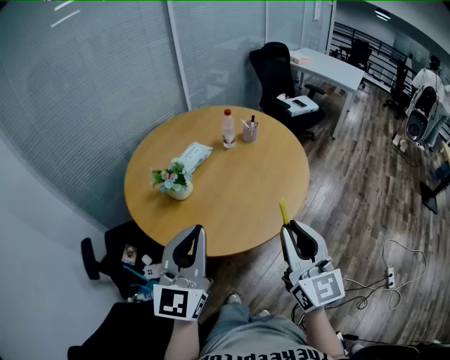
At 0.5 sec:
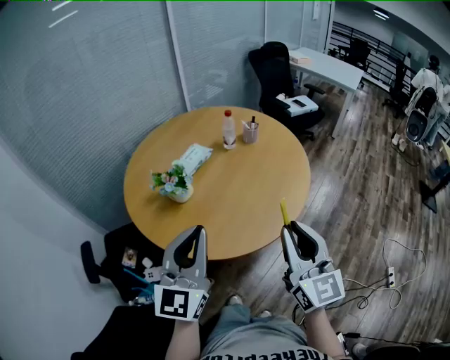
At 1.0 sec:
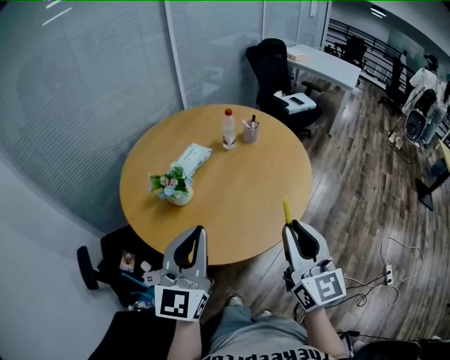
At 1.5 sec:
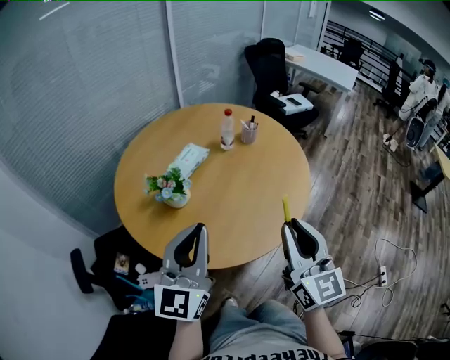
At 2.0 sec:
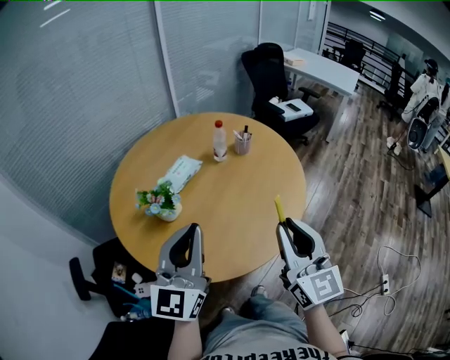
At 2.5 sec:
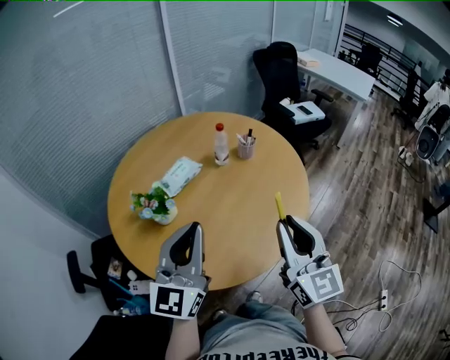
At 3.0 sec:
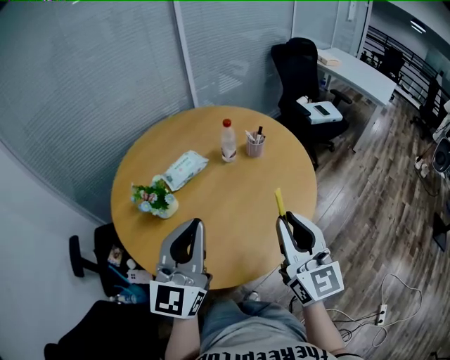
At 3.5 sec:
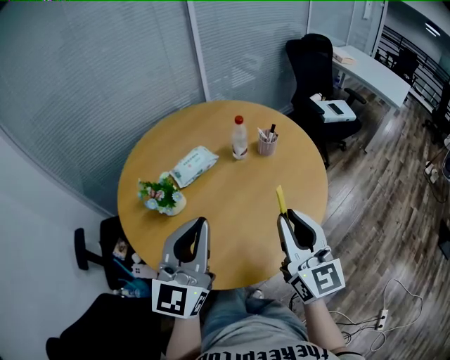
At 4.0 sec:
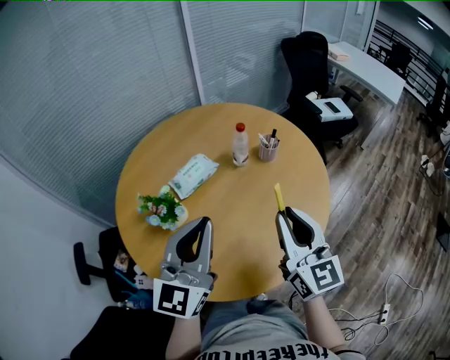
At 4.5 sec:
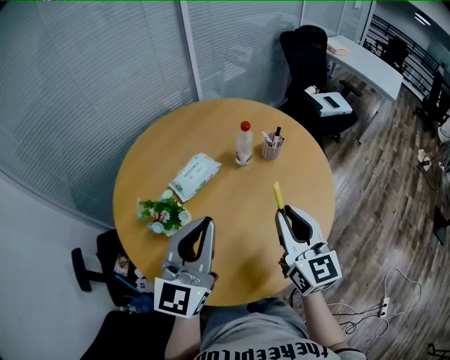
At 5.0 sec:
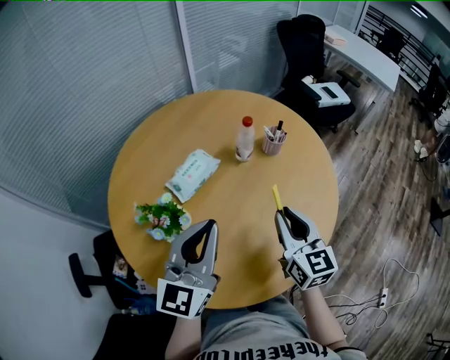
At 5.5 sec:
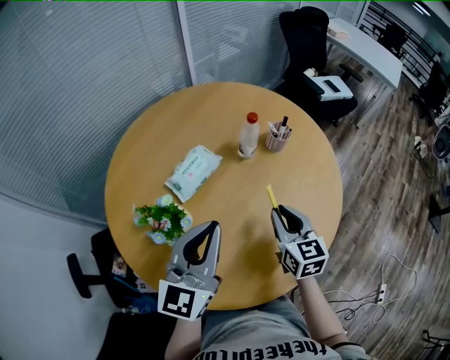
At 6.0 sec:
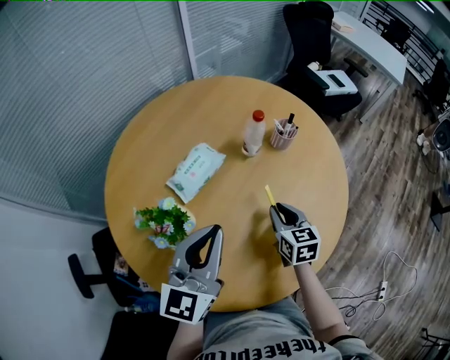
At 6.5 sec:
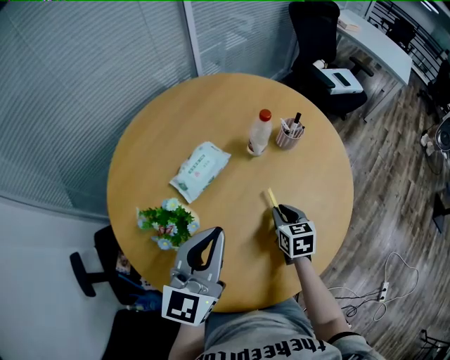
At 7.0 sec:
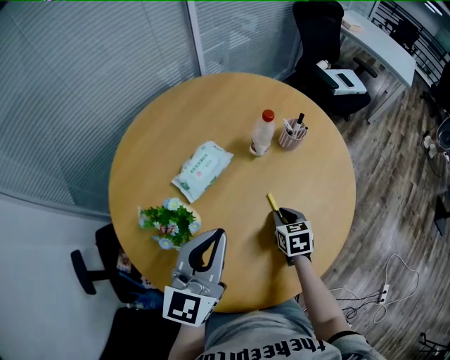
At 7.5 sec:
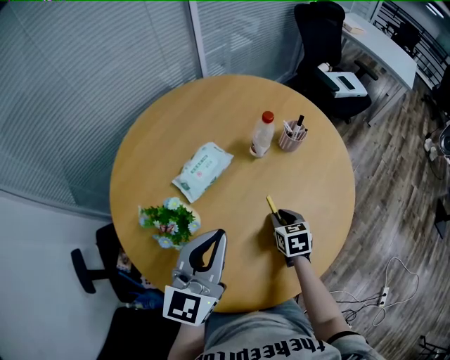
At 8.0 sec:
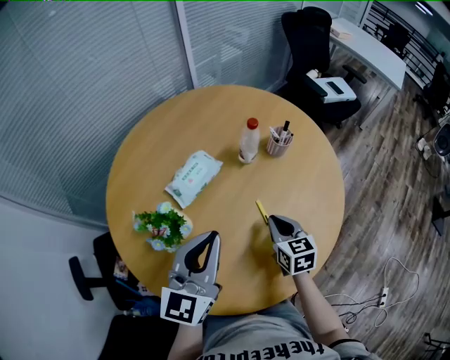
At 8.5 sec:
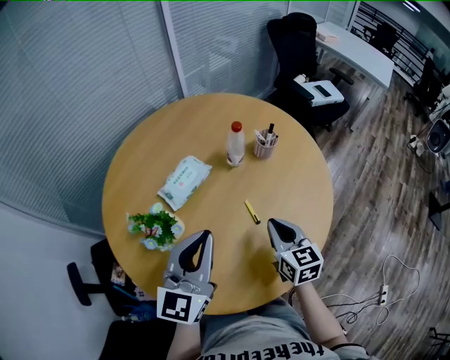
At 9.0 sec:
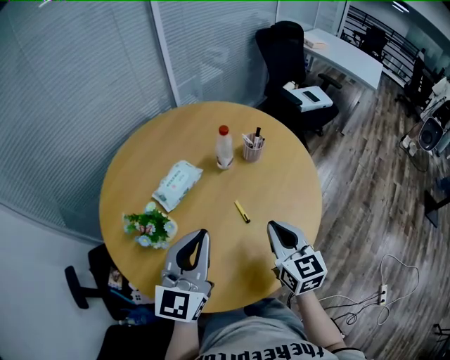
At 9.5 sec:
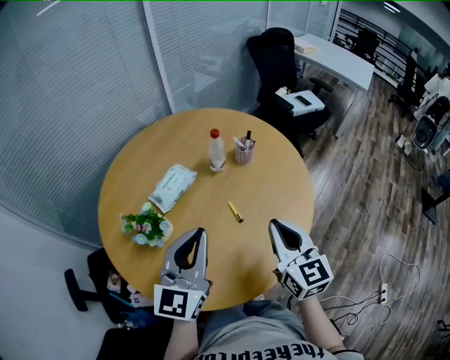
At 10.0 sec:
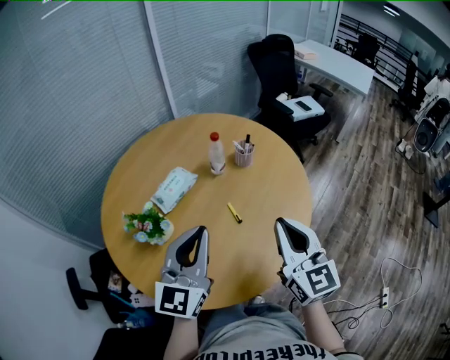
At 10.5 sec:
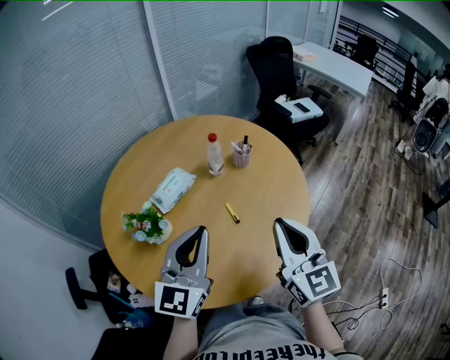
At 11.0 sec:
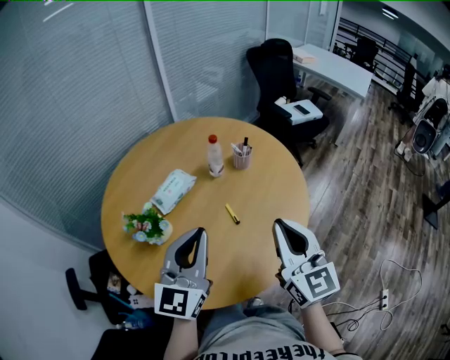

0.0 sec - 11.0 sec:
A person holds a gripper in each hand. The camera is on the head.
0.0 sec - 2.0 sec: The two grippers go about 10 cm forward.
2.0 sec - 3.5 sec: The right gripper goes about 10 cm forward. The left gripper heads forward and to the right, covering about 10 cm.
3.5 sec - 5.5 sec: The right gripper moves downward, forward and to the left, roughly 20 cm, and turns by about 30 degrees; the left gripper shifts approximately 15 cm forward, downward and to the left.
5.5 sec - 7.5 sec: The right gripper goes roughly 15 cm downward, and changes its angle by approximately 30 degrees.
7.5 sec - 9.0 sec: The right gripper travels upward and backward by approximately 20 cm, angles its fingers upward, by approximately 30 degrees, and closes its fingers; the left gripper ends up about 5 cm from where it was.
9.0 sec - 11.0 sec: The left gripper changes place by roughly 5 cm. The right gripper travels upward and backward by roughly 15 cm.

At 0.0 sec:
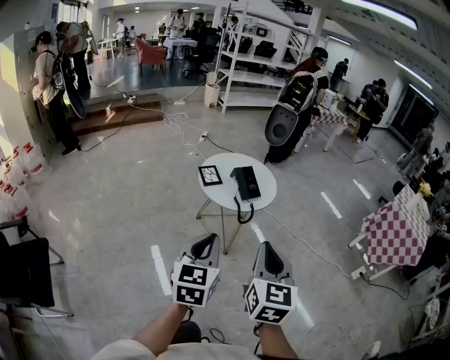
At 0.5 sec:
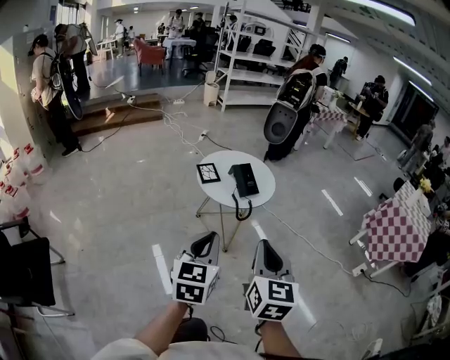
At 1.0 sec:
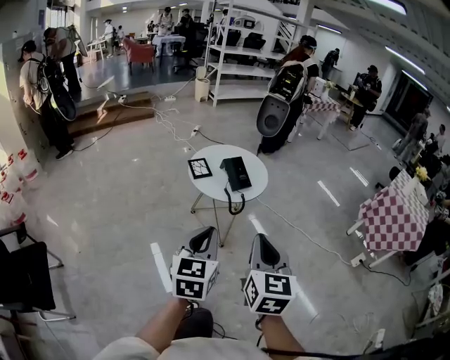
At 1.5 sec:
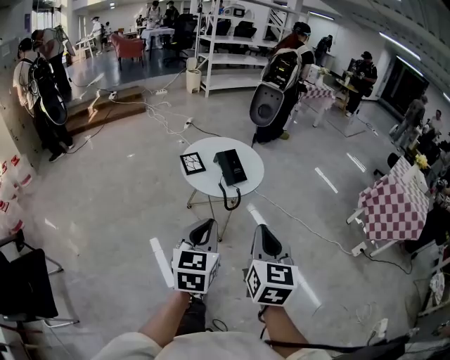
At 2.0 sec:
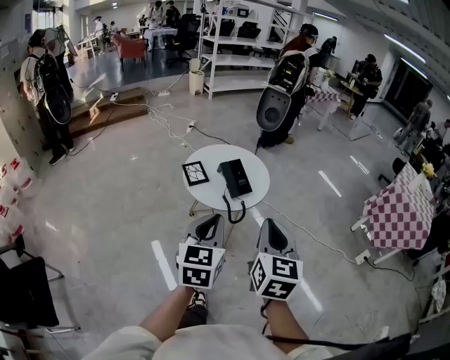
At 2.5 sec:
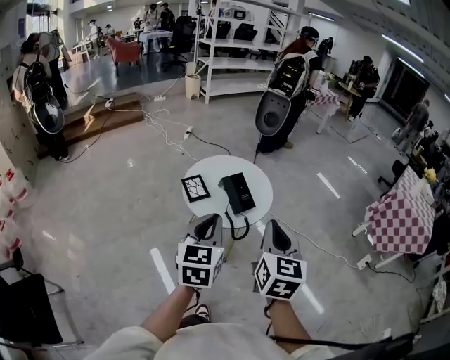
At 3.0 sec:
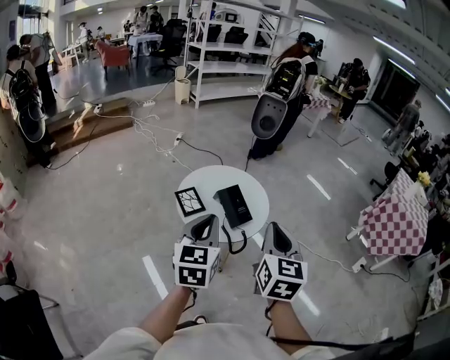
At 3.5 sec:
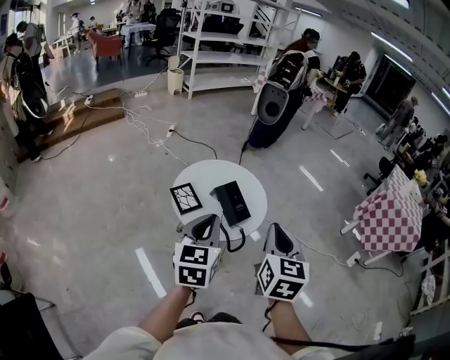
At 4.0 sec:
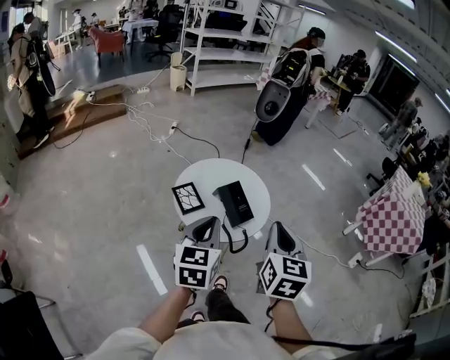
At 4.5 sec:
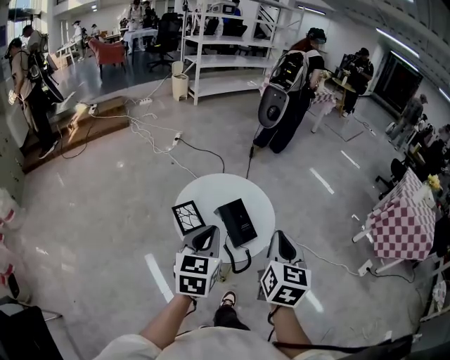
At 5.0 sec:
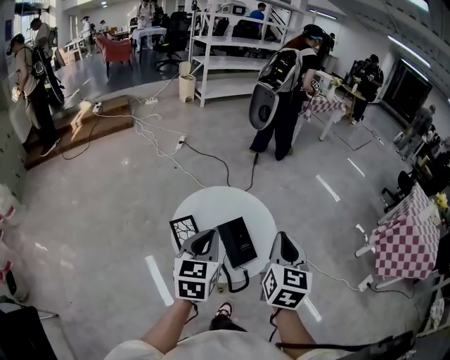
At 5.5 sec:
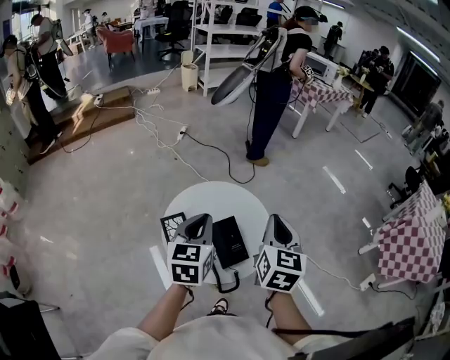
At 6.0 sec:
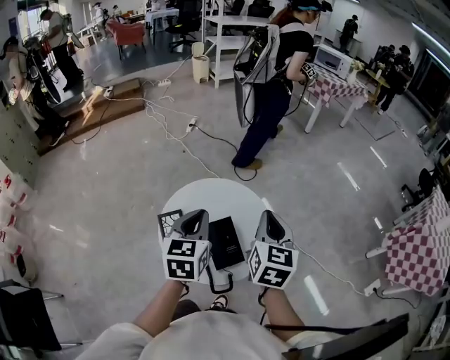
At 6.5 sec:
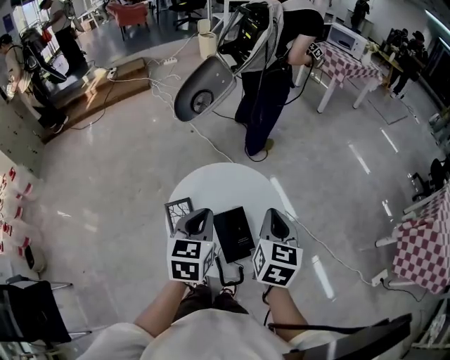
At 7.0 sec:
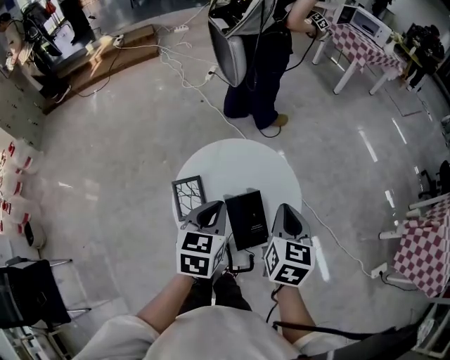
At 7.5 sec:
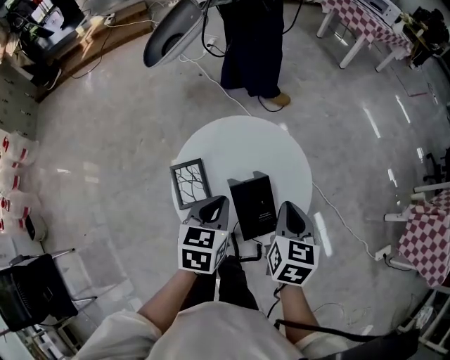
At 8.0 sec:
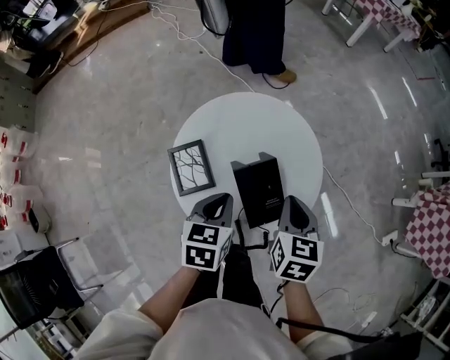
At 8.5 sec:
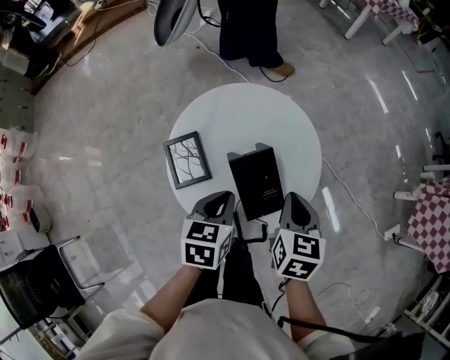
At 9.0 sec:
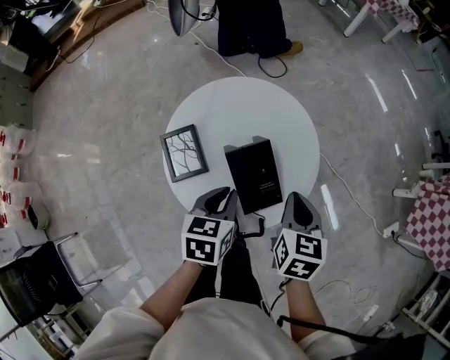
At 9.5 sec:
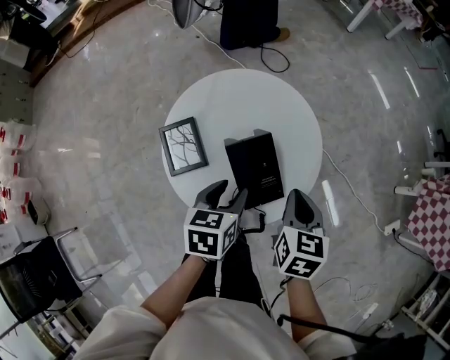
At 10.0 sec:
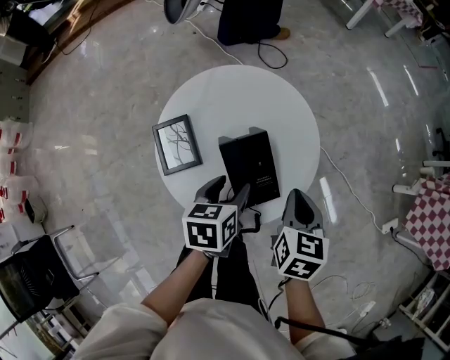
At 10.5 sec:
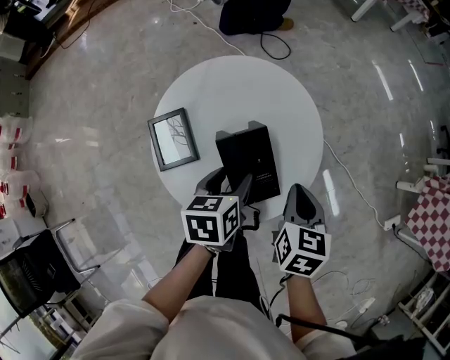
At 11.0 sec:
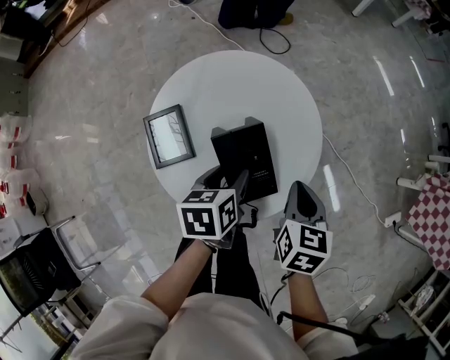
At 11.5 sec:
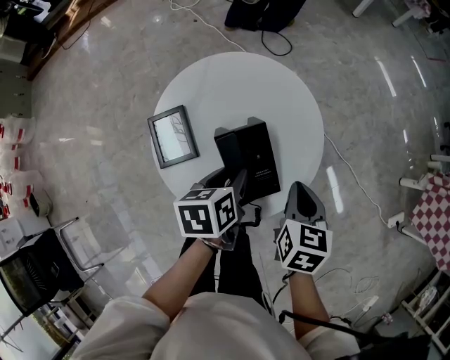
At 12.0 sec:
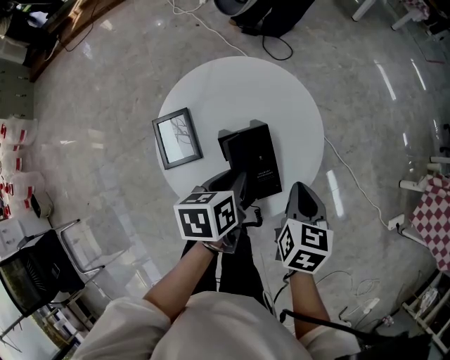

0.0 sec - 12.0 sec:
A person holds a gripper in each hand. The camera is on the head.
0.0 sec - 2.0 sec: The two grippers go roughly 10 cm forward.
2.0 sec - 4.0 sec: The left gripper goes approximately 15 cm forward and to the left, while the right gripper is displaced forward by roughly 15 cm.
4.0 sec - 6.0 sec: Both grippers travel together forward, some 25 cm.
6.0 sec - 8.0 sec: The grippers both shift downward by about 20 cm. The right gripper changes its angle by roughly 20 degrees, while the left gripper turns by approximately 30 degrees.
8.0 sec - 10.0 sec: Both grippers move to the right, approximately 5 cm. The left gripper opens up.
10.0 sec - 12.0 sec: The left gripper closes its fingers.

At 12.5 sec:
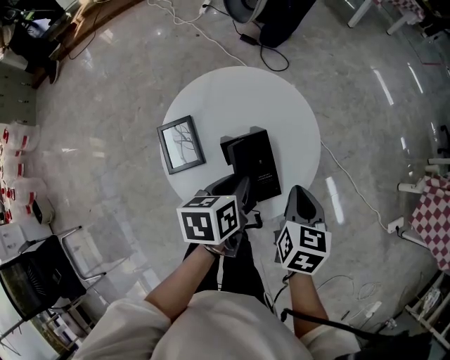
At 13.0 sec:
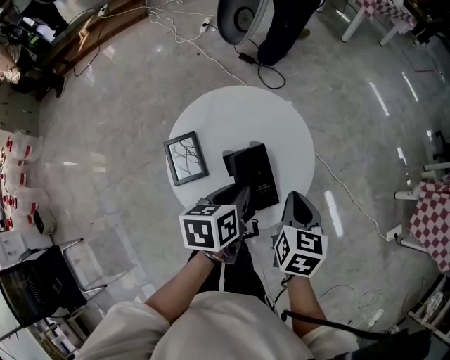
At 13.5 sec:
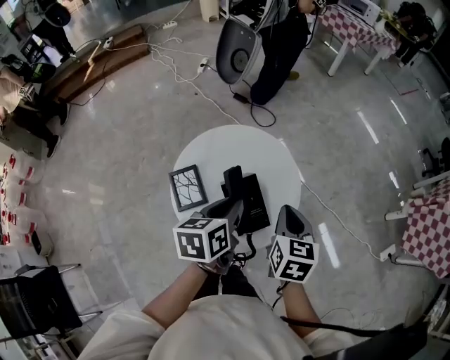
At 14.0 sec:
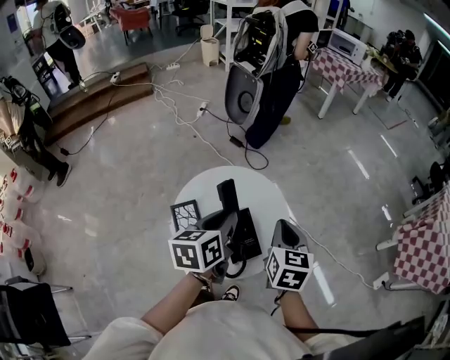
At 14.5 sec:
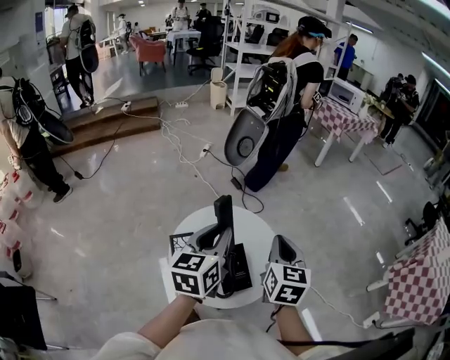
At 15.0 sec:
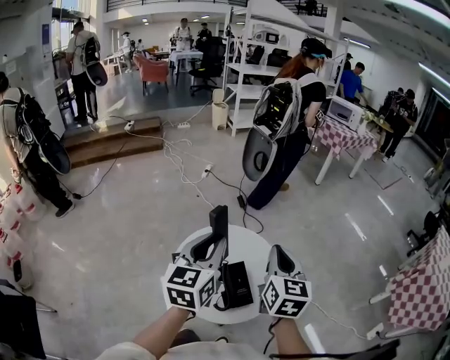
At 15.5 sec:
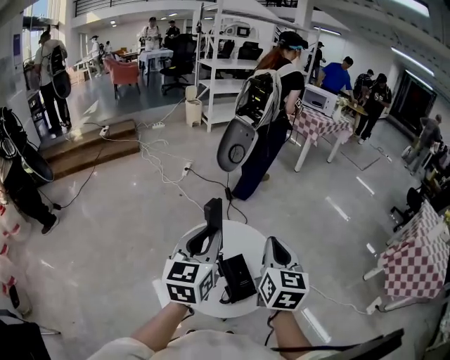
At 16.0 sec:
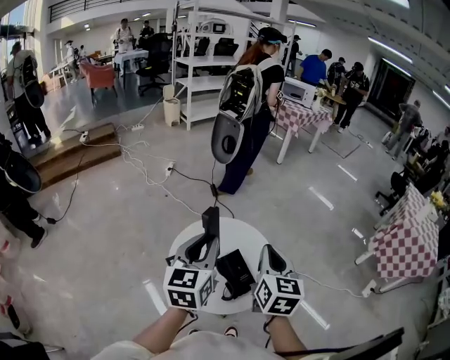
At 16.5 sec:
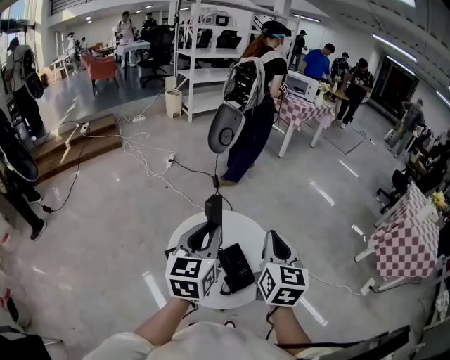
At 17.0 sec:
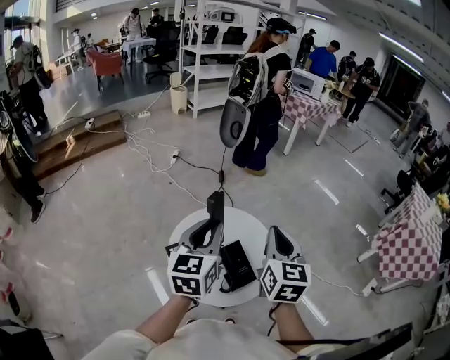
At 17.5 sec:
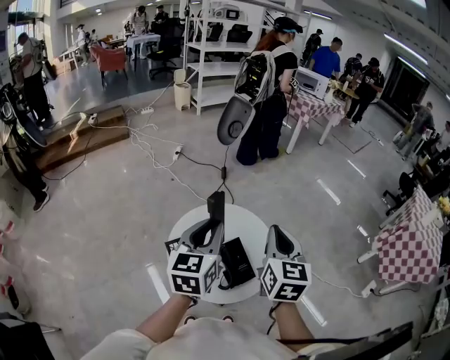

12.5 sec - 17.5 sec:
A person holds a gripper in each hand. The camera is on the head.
12.5 sec - 15.0 sec: The two grippers go some 25 cm upward. The left gripper angles its fingers upward, by roughly 40 degrees; the right gripper tilts its fingers some 30 degrees upward.
